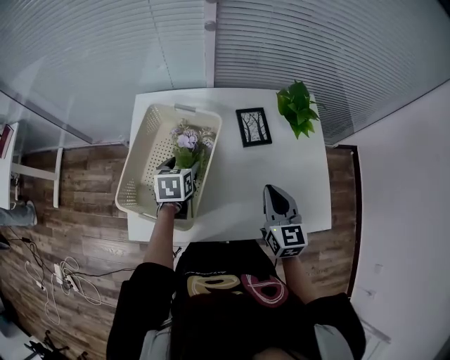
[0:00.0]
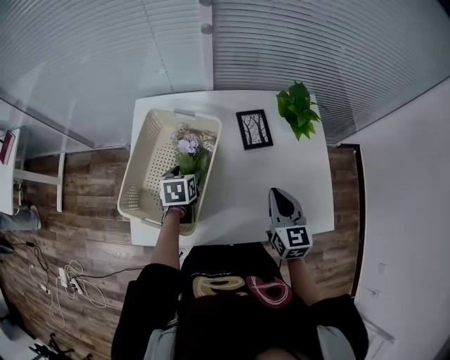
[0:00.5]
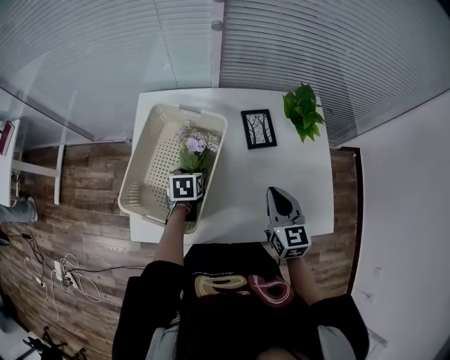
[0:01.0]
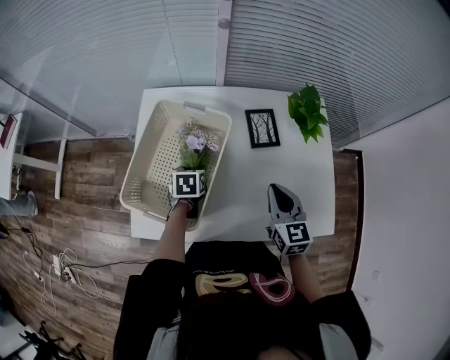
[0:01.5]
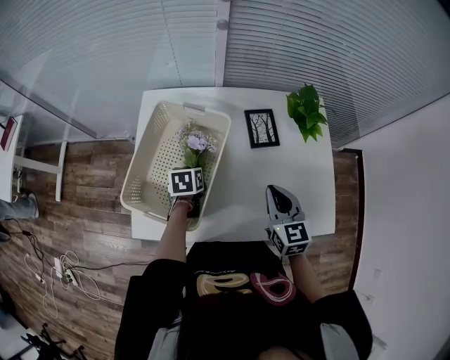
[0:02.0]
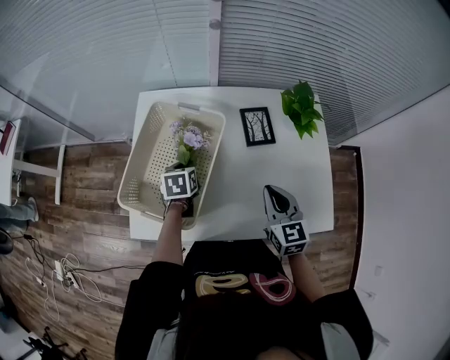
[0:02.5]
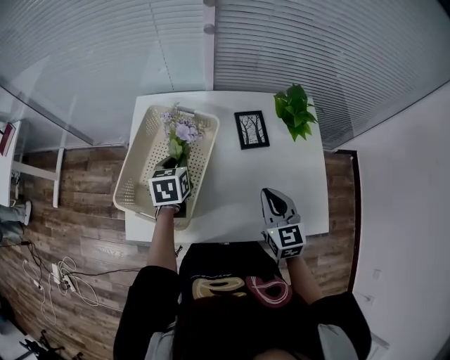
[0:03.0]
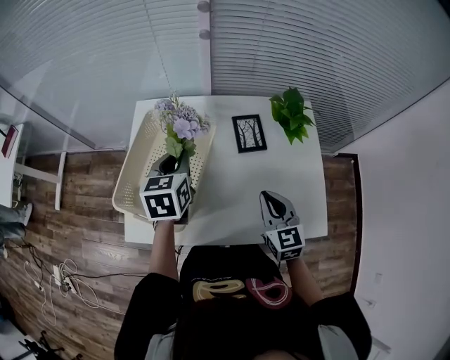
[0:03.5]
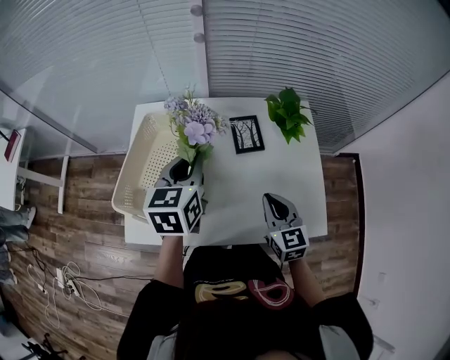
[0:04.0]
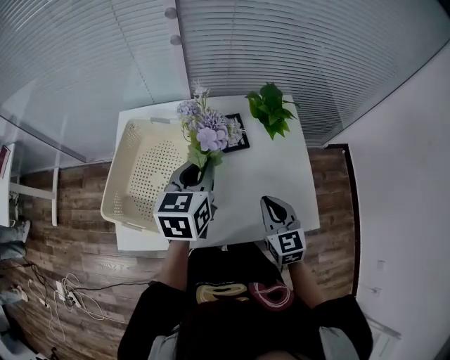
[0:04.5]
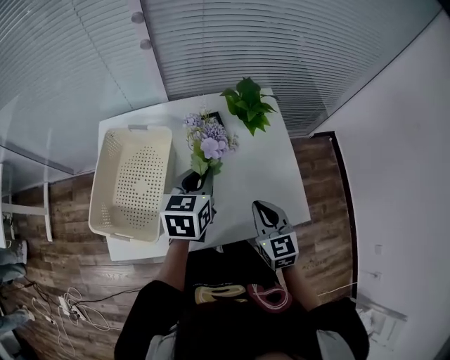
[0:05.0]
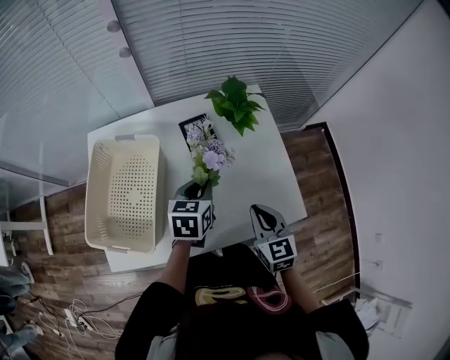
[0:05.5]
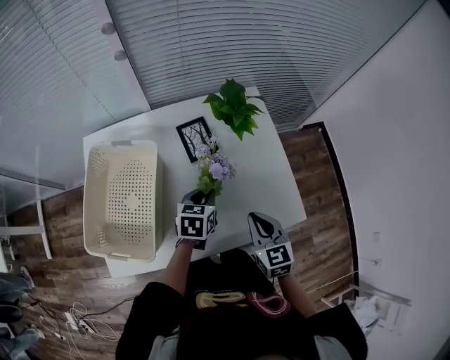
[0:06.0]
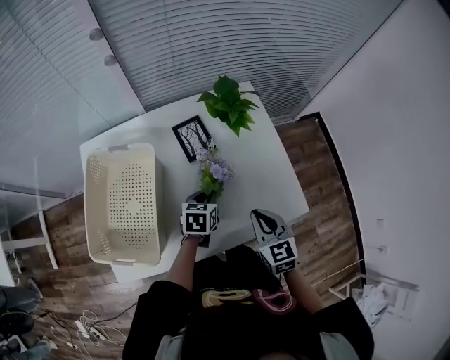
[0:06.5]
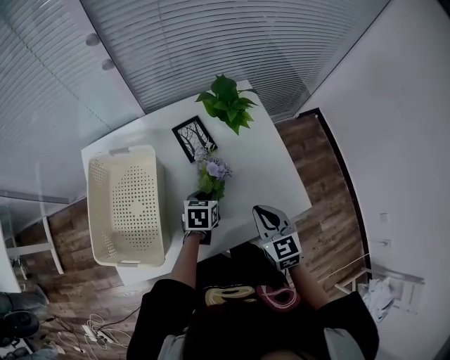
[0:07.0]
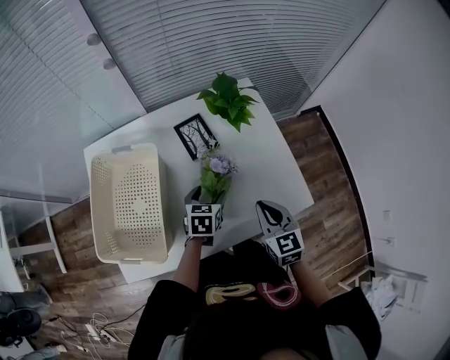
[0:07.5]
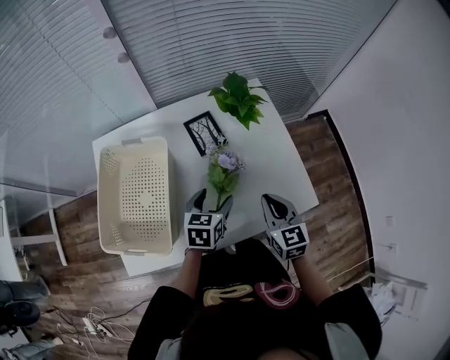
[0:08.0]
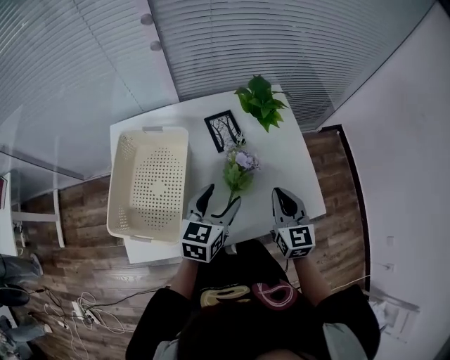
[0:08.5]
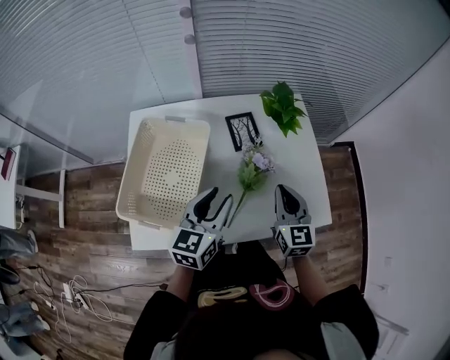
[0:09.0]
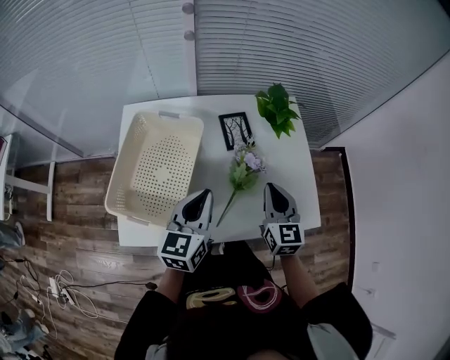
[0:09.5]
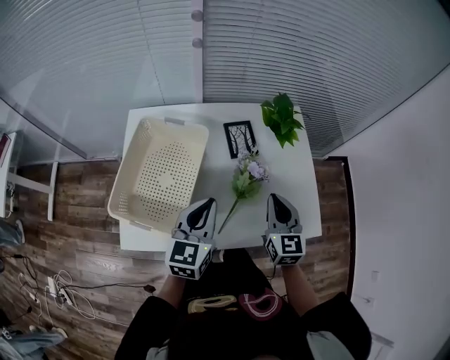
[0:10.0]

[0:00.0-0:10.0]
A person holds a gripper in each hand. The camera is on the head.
0:00.0 to 0:02.0: The left gripper moves downward, roughly 5 cm, and closes its fingers.
0:02.0 to 0:04.0: The left gripper heads upward, covering roughly 25 cm, and angles its fingers upward, by approximately 30 degrees.
0:04.0 to 0:06.0: The left gripper heads downward and to the right, covering roughly 25 cm, and changes its angle by about 30 degrees. The right gripper travels to the right by some 5 cm.
0:06.0 to 0:08.0: The left gripper moves some 5 cm downward and comes back, and opens up.
0:08.0 to 0:10.0: The left gripper heads upward, to the left and backward, covering approximately 15 cm, changes its angle by some 30 degrees, and closes; the right gripper is displaced to the left by approximately 5 cm.

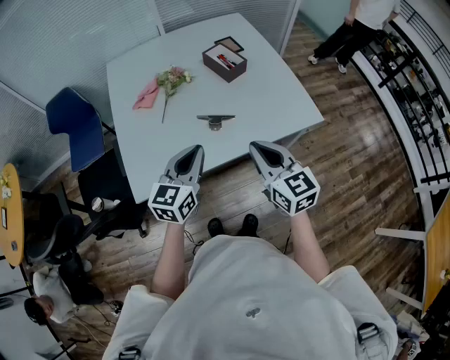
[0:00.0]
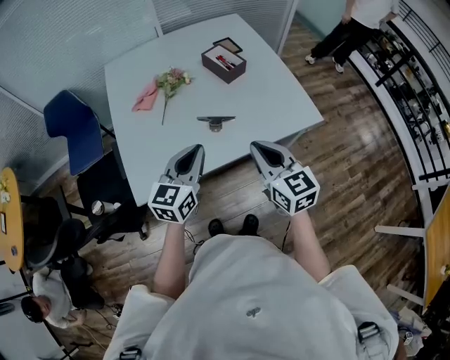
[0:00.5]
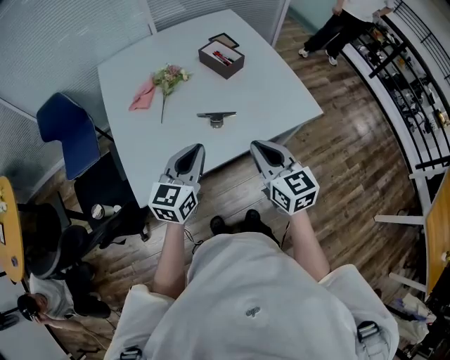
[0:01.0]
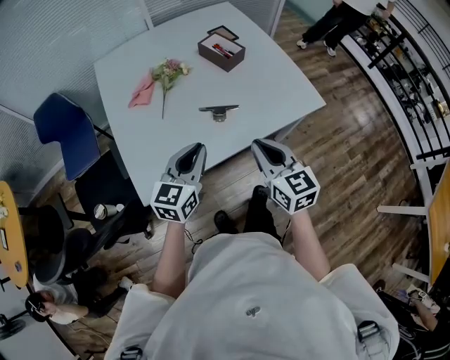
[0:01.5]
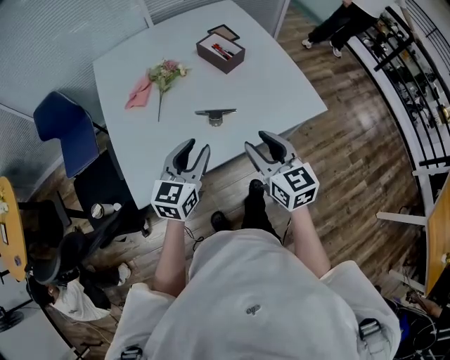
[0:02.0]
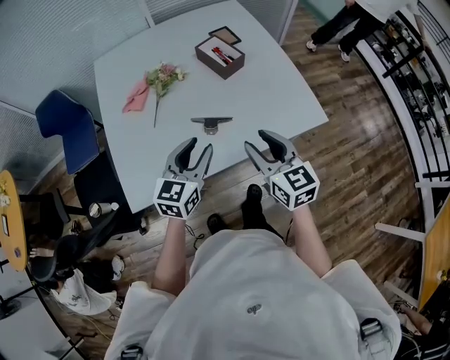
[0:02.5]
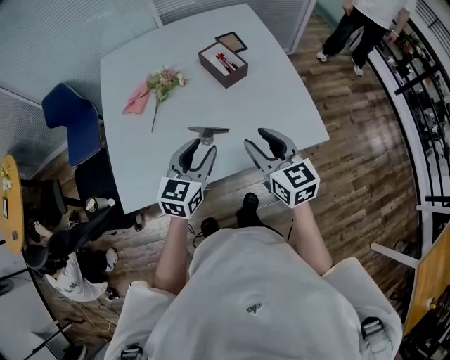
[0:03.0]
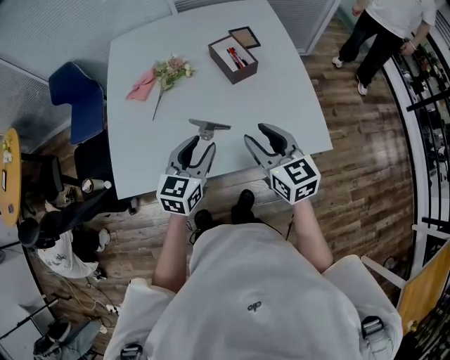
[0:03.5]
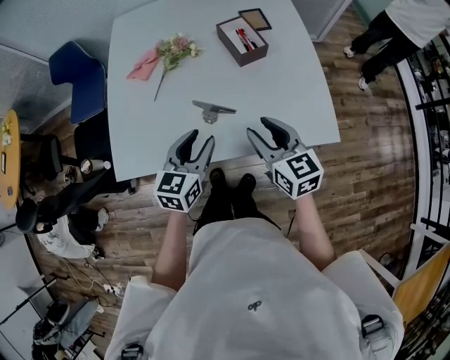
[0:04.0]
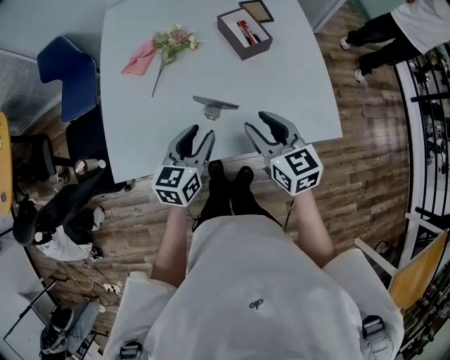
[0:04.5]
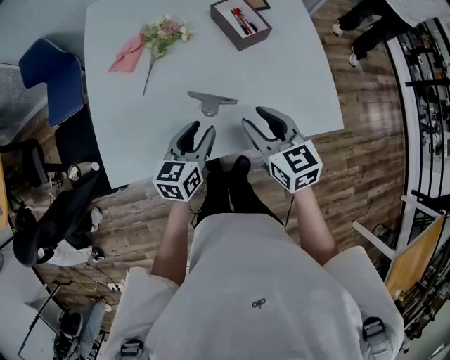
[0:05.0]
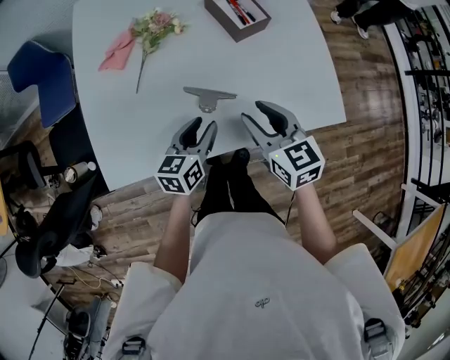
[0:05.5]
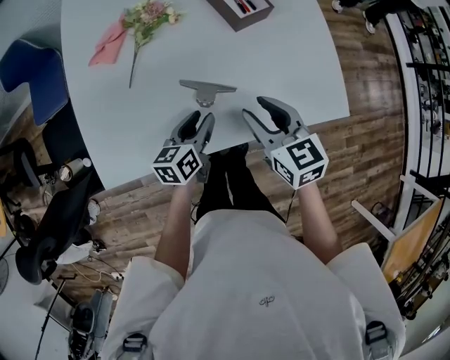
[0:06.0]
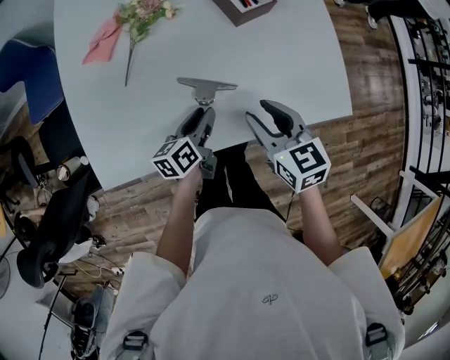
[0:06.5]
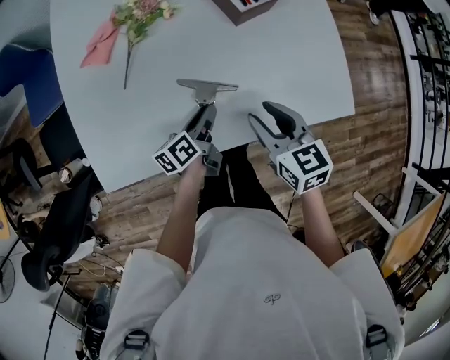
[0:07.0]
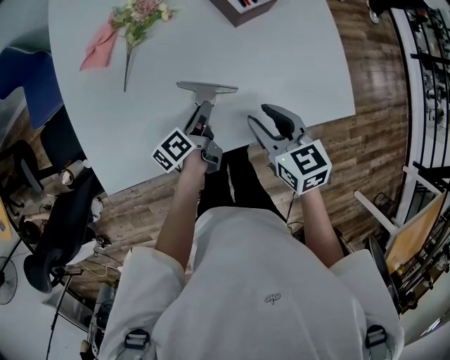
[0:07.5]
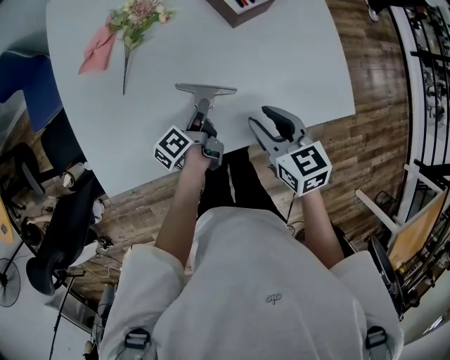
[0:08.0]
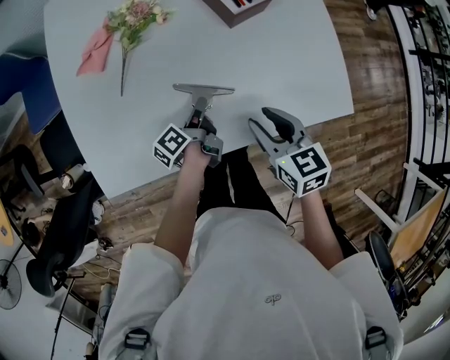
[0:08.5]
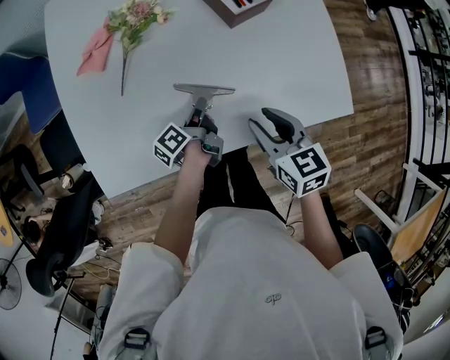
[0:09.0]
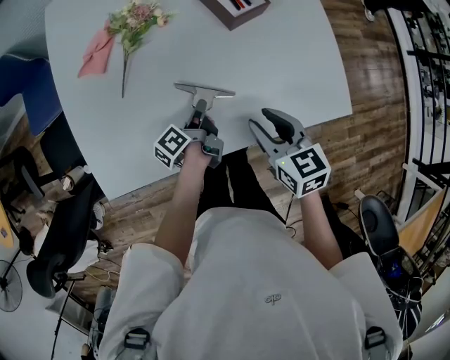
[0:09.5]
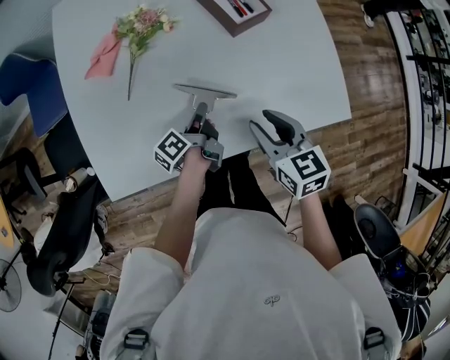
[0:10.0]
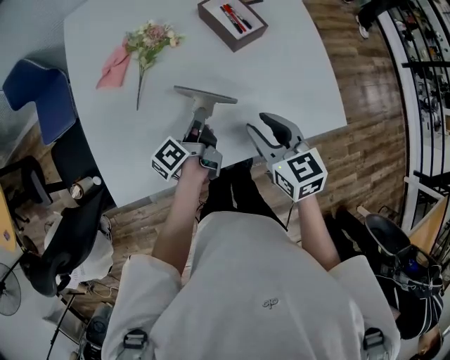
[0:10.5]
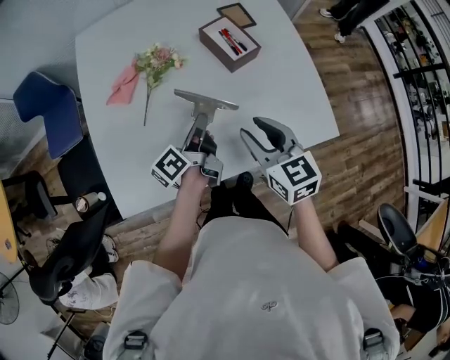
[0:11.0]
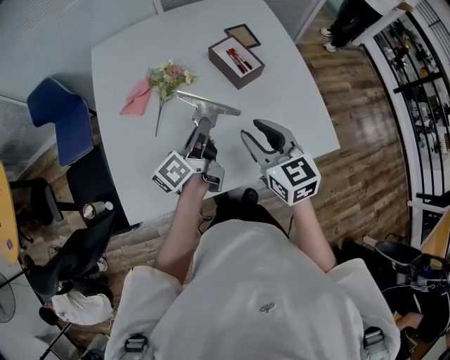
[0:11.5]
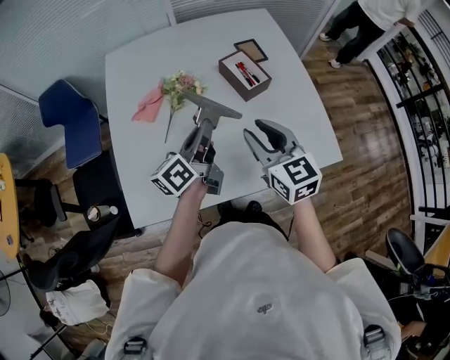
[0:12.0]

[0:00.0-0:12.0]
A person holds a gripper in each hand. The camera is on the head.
0:00.0 to 0:02.0: The left gripper shifts by roughly 5 cm, and opens, while the right gripper moves roughly 5 cm, and opens up.
0:02.0 to 0:04.0: The right gripper goes some 15 cm forward and to the right. The left gripper heads to the right and forward, covering about 10 cm, and swivels about 20 degrees.
0:04.0 to 0:06.0: The right gripper moves downward, approximately 5 cm, while the left gripper shifts approximately 15 cm downward and forward, and rotates roughly 30 degrees.
0:06.0 to 0:08.0: The left gripper heads downward, covering about 5 cm, and rotates around the line of its fingers by approximately 50 degrees, counterclockwise from behind.
0:08.0 to 0:10.0: The left gripper closes.
0:10.0 to 0:12.0: The left gripper moves upward, approximately 25 cm, and changes its angle by about 40 degrees; the right gripper travels upward and to the left by about 15 cm, and changes its angle by roughly 20 degrees.

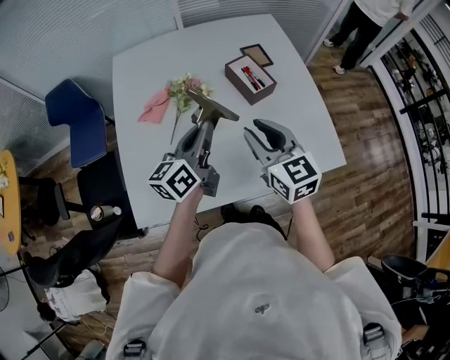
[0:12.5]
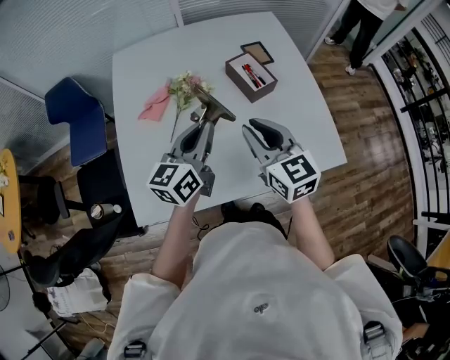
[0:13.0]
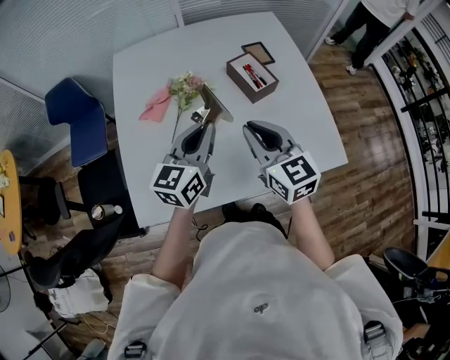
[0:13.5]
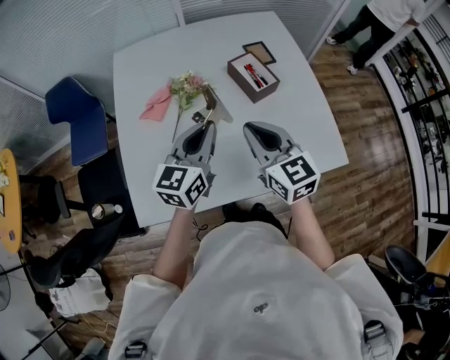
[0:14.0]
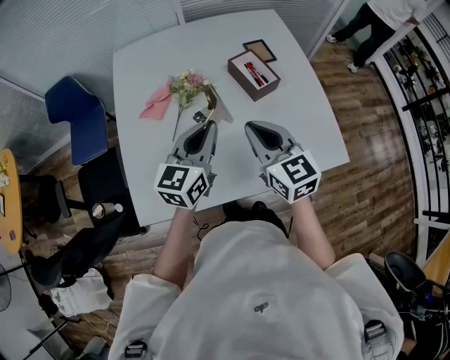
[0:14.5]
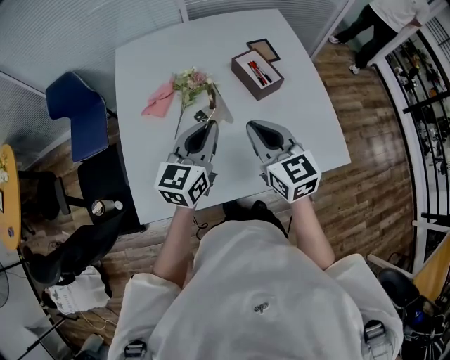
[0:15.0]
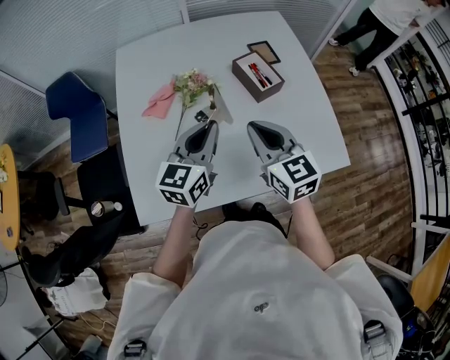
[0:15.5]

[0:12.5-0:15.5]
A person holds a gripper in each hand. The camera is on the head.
0:12.5 to 0:14.0: The right gripper closes. Meanwhile the left gripper turns by about 30 degrees.
0:14.0 to 0:15.5: The grippers stay close to where they were, moving slightly.

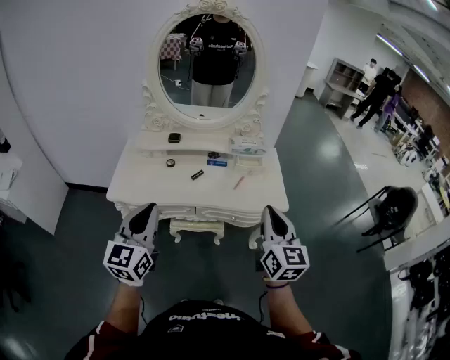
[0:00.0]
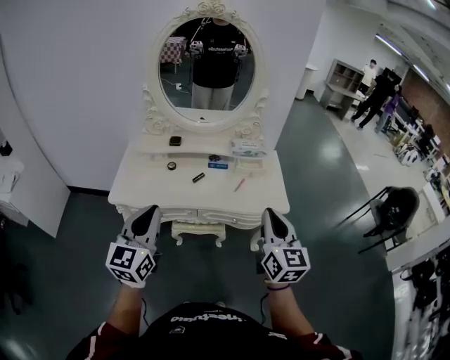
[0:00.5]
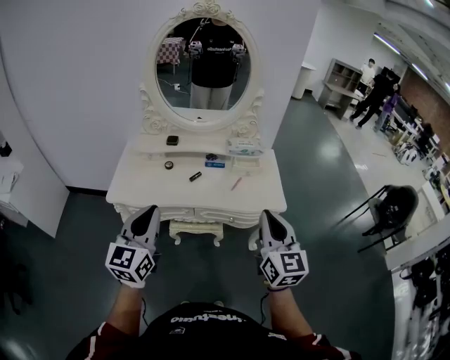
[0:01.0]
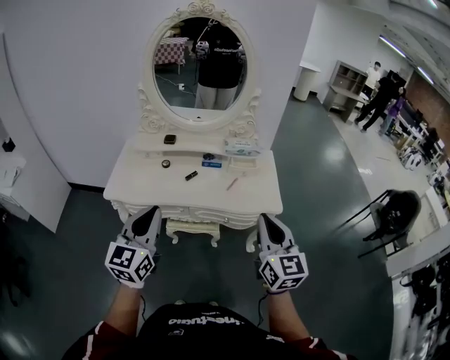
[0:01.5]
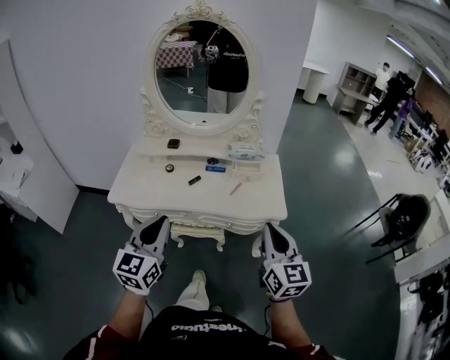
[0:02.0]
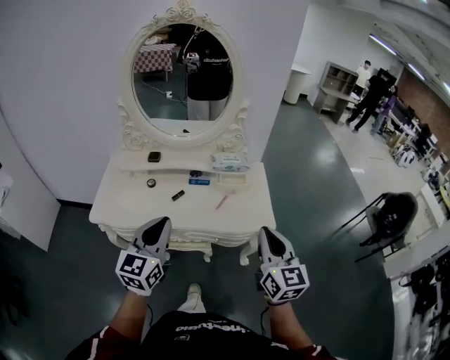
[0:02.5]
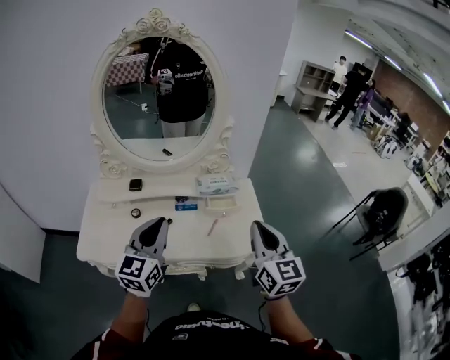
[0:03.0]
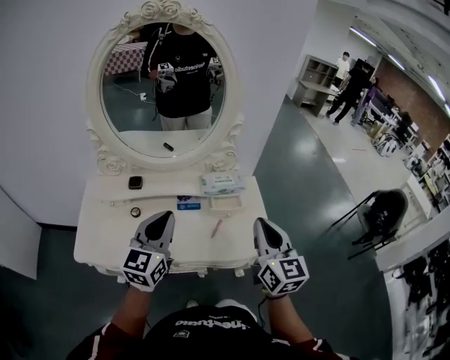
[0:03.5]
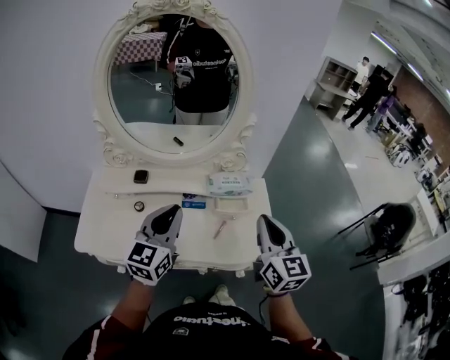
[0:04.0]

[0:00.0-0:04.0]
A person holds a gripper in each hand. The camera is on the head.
0:00.0 to 0:02.0: Both grippers travel together to the right, approximately 10 cm.
0:02.0 to 0:04.0: The grippers both shift forward by some 30 cm.
